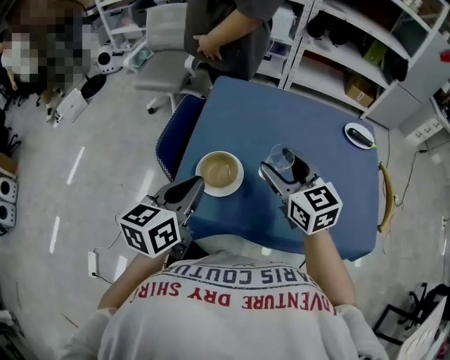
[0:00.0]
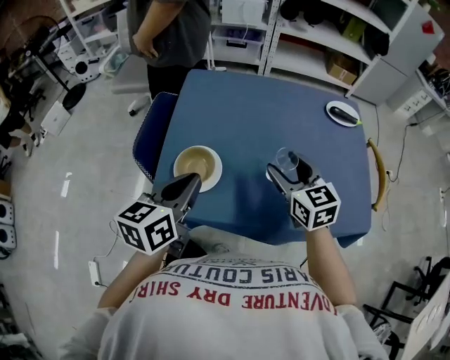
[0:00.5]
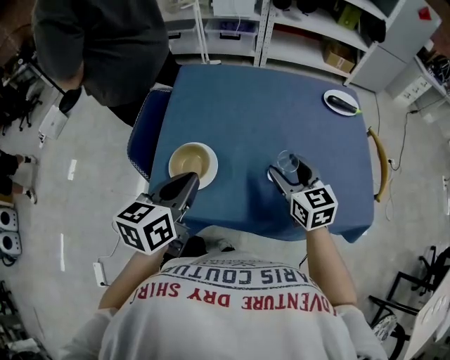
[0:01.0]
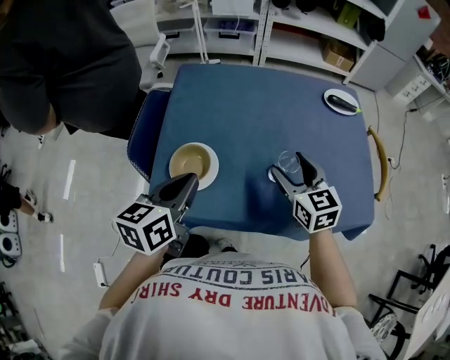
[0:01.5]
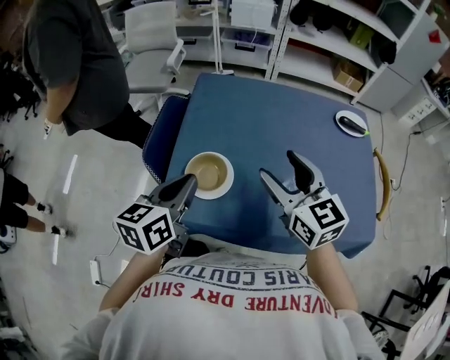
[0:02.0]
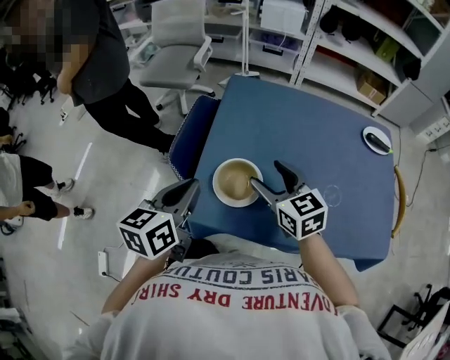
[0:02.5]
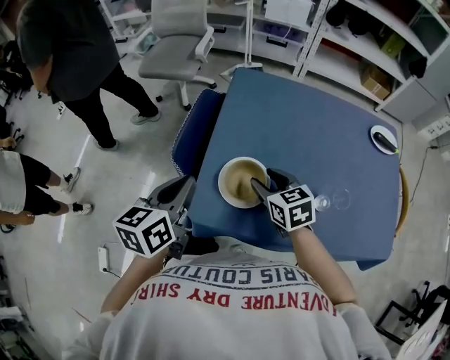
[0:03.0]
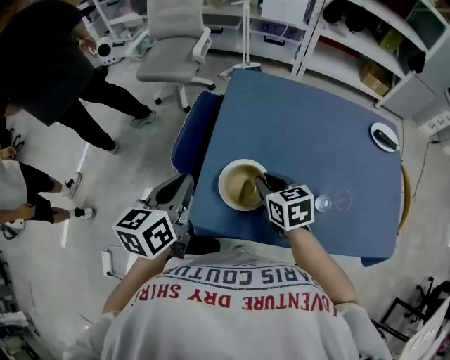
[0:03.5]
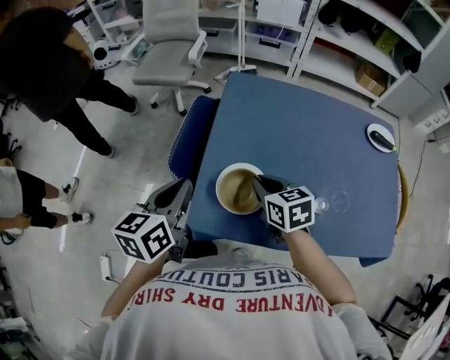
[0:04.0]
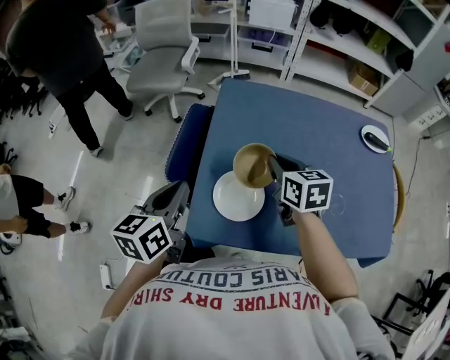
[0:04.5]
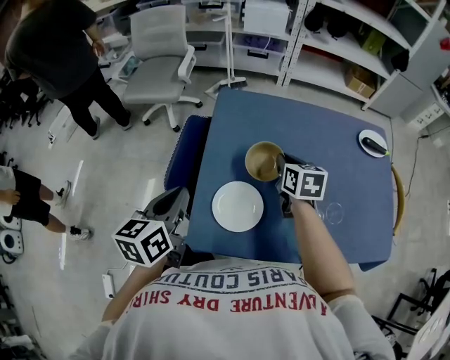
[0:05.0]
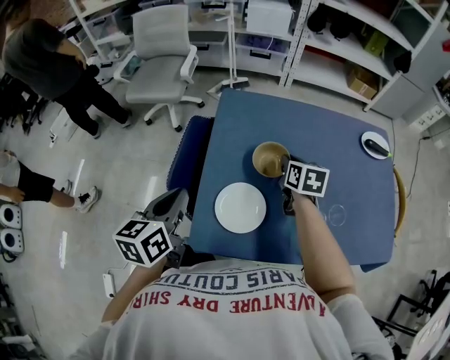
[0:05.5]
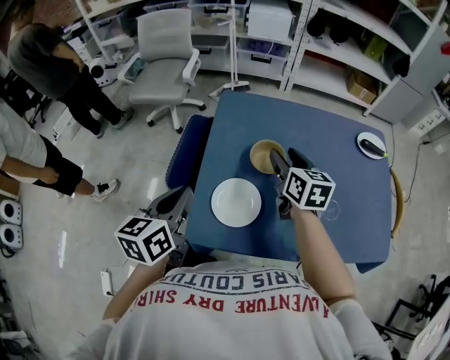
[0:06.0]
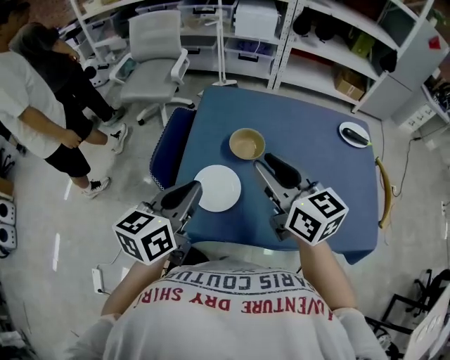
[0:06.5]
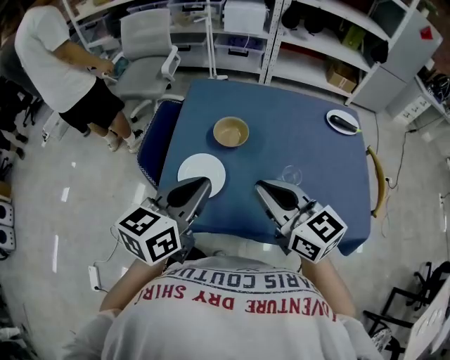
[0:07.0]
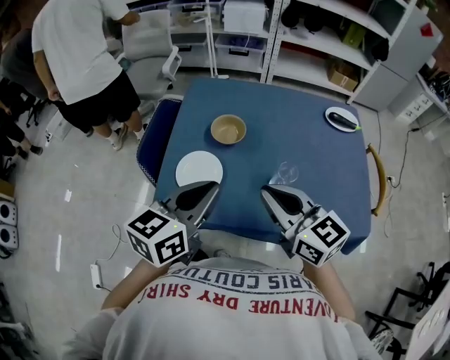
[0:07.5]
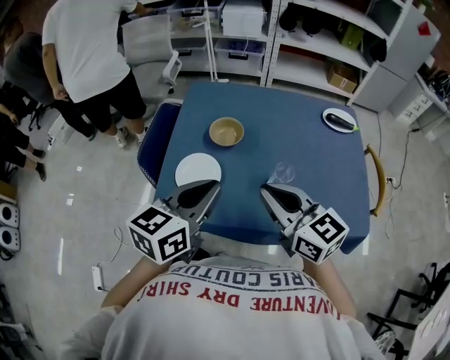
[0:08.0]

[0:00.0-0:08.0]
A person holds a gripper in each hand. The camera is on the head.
0:00.0 to 0:02.0: The right gripper goes to the right and returns, some 15 cm each way.
0:02.0 to 0:04.0: The right gripper goes roughly 20 cm downward, to the left and forward, rotates some 30 degrees, and closes; the left gripper is displaced to the left and forward by approximately 10 cm.
0:04.0 to 0:06.0: The right gripper shifts roughly 15 cm forward, to the right and upward, rotates approximately 30 degrees, and opens.
0:06.0 to 0:08.0: The left gripper moves to the right and backward, approximately 20 cm; the right gripper travels backward by some 25 cm, rotates about 30 degrees, and closes its fingers.

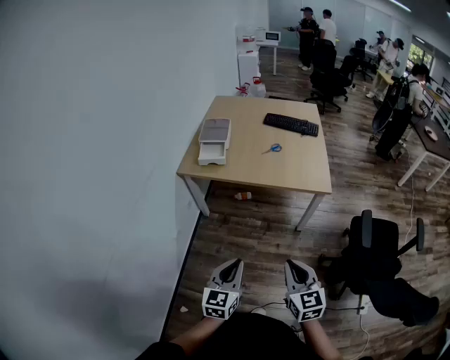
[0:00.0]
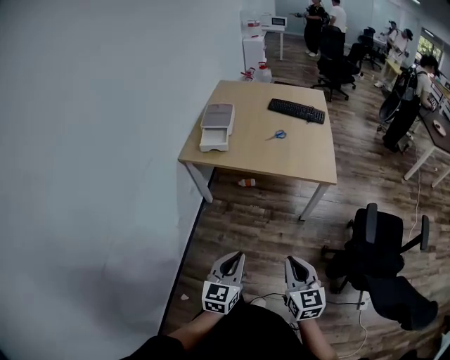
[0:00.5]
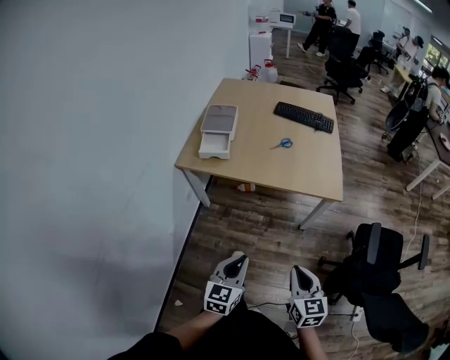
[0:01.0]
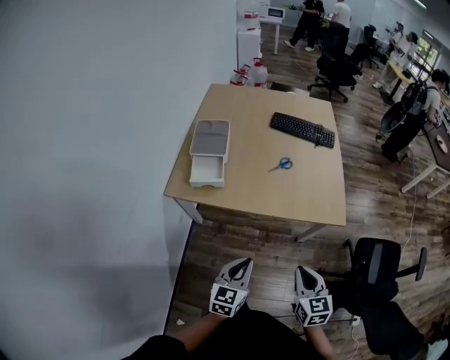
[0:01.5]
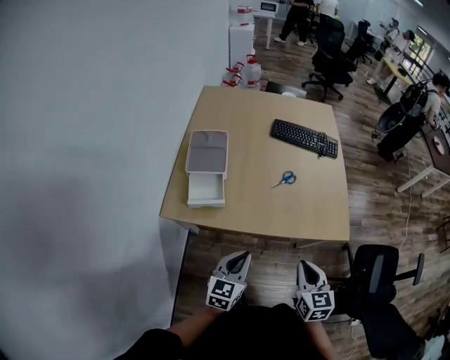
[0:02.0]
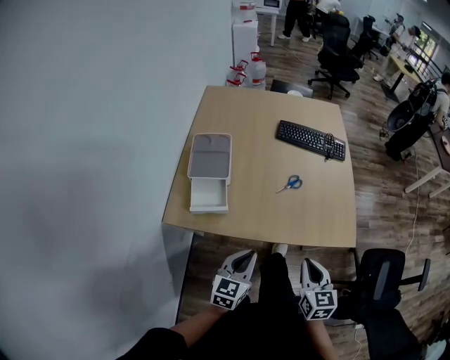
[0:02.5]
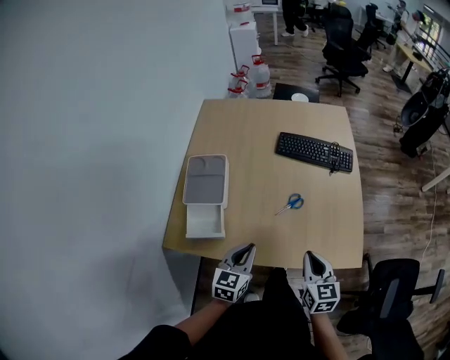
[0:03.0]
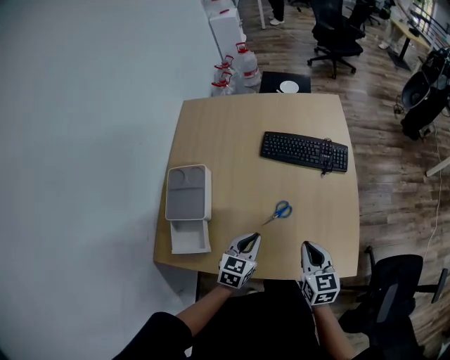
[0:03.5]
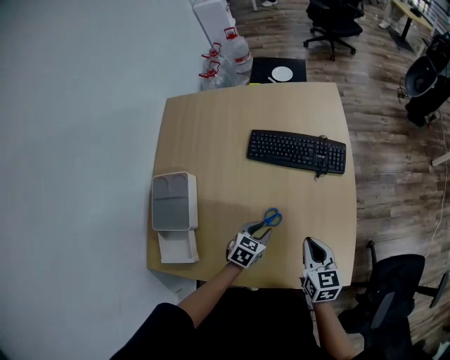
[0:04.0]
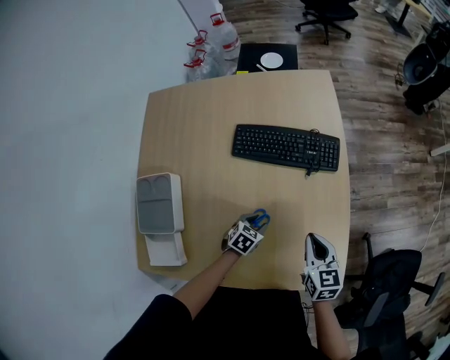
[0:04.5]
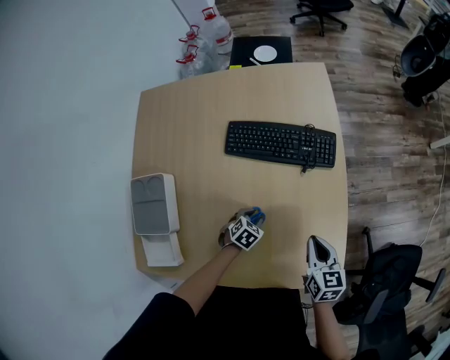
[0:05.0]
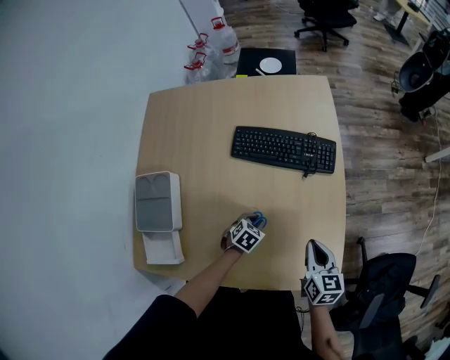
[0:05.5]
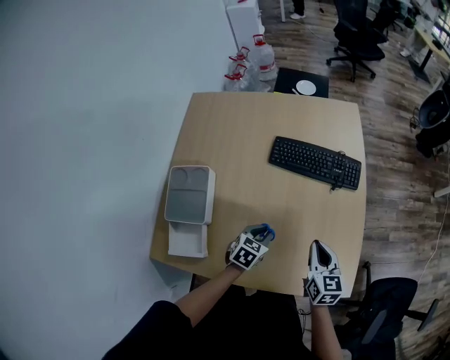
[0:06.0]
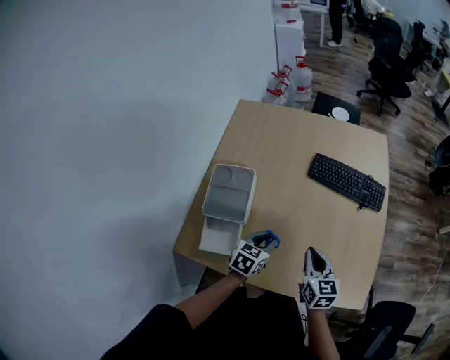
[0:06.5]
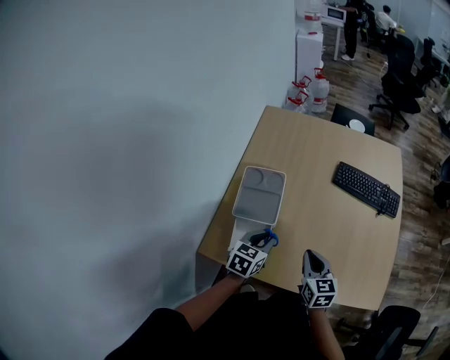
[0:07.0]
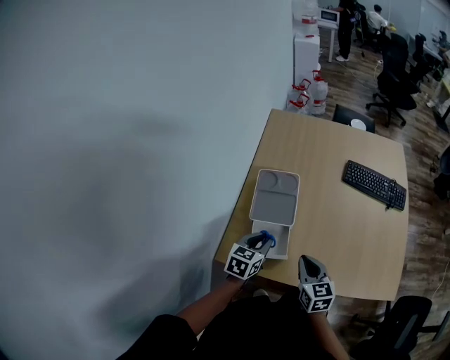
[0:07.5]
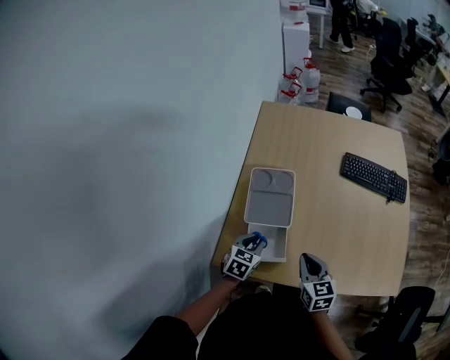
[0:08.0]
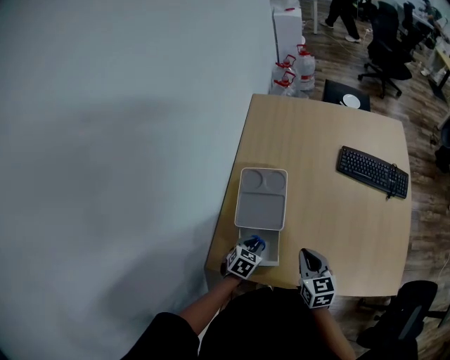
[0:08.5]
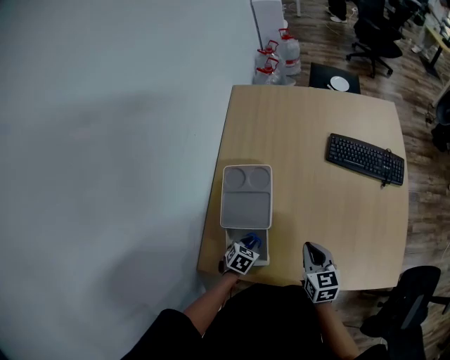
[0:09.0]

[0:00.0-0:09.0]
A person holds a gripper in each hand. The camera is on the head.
0:00.0 to 0:02.0: Both grippers move forward, some 40 cm.
0:02.0 to 0:04.5: The pair of grippers is taken forward, about 40 cm. The left gripper heads downward, covering some 25 cm, points its fingers roughly 40 degrees further downward, and opens up.
0:04.5 to 0:07.0: The left gripper travels to the left, upward and backward by roughly 40 cm, and turns by roughly 40 degrees. The right gripper shifts about 35 cm to the left and backward.
0:07.0 to 0:09.0: The left gripper travels downward by roughly 20 cm, and swivels roughly 30 degrees; the right gripper shifts roughly 5 cm downward.

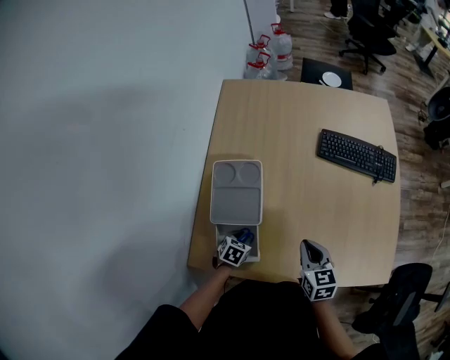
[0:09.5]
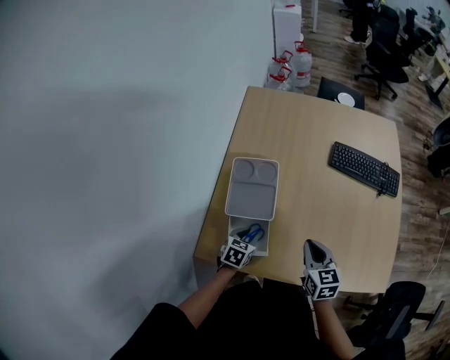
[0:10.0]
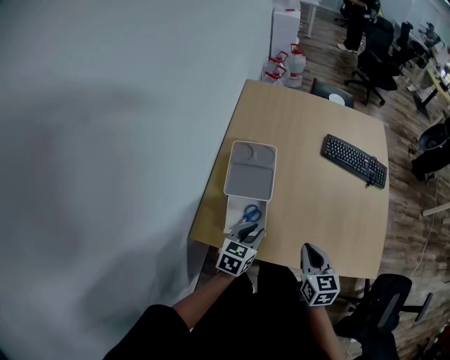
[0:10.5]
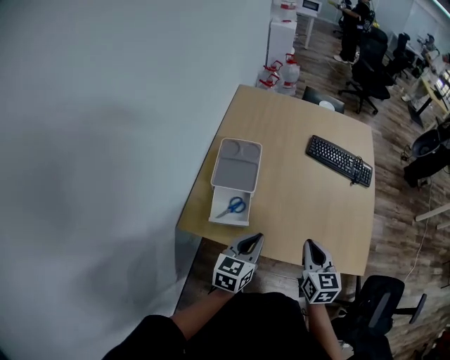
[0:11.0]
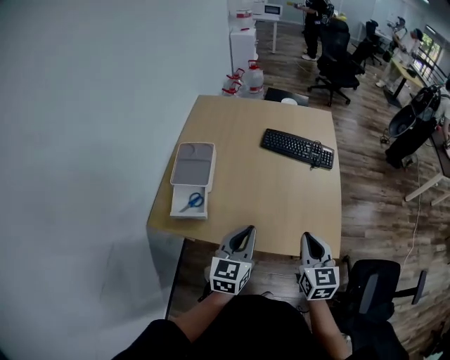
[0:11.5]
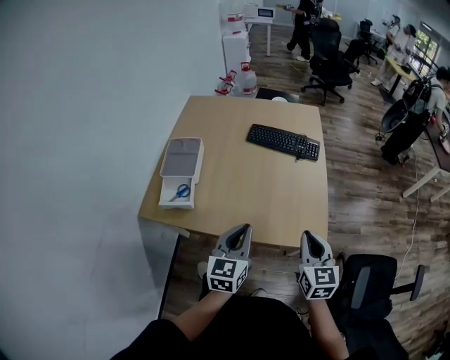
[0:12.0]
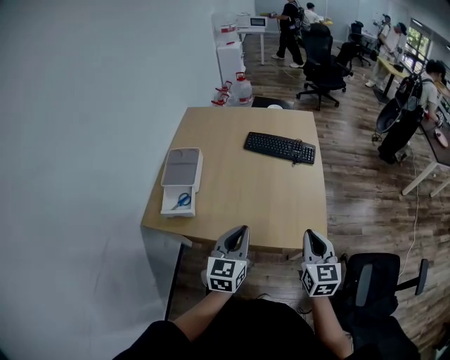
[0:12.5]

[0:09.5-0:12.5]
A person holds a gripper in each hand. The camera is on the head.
0:09.5 to 0:11.0: The left gripper is displaced upward and backward by roughly 30 cm, and tilts its fingers about 40 degrees upward. Meanwhile the right gripper shifts approximately 20 cm backward, upward and to the right.
0:11.0 to 0:12.5: Both grippers move to the right, approximately 25 cm.

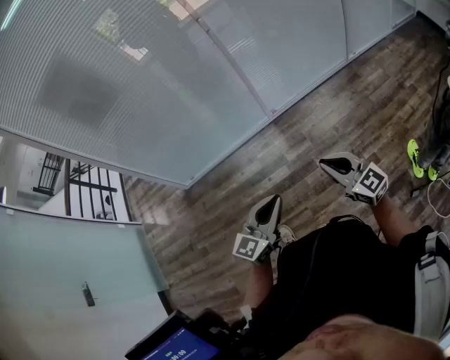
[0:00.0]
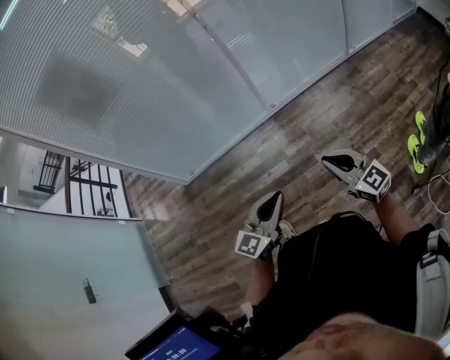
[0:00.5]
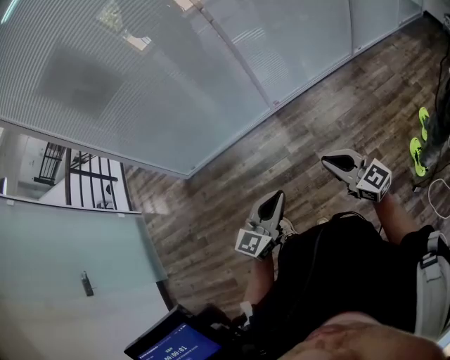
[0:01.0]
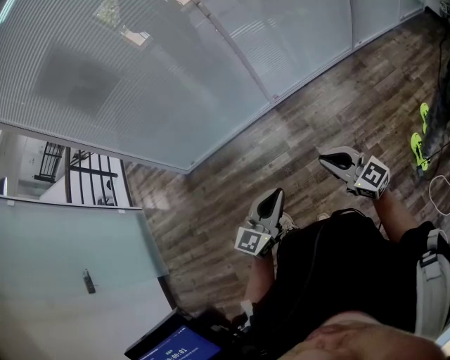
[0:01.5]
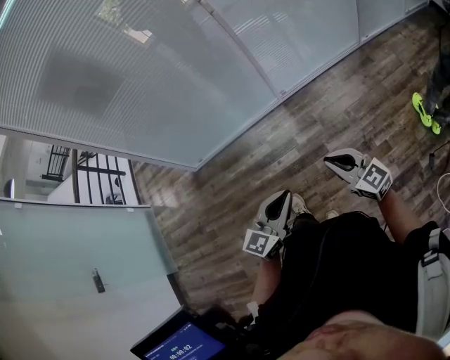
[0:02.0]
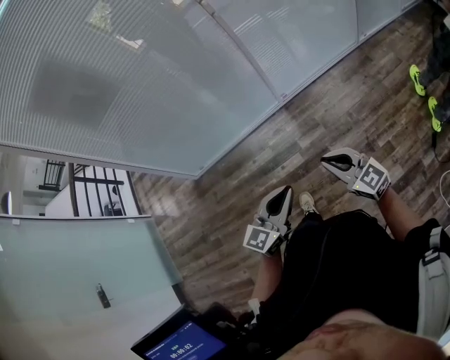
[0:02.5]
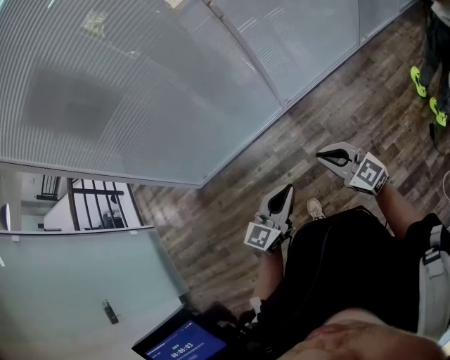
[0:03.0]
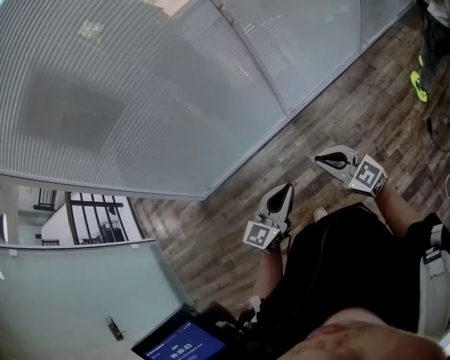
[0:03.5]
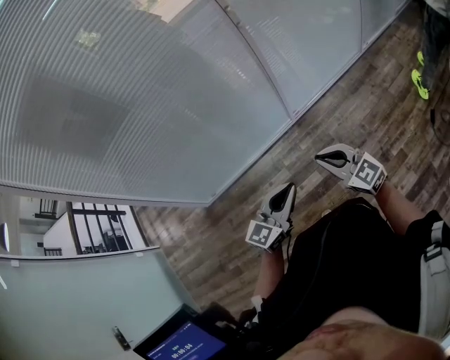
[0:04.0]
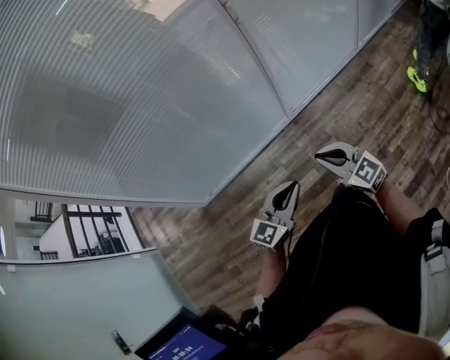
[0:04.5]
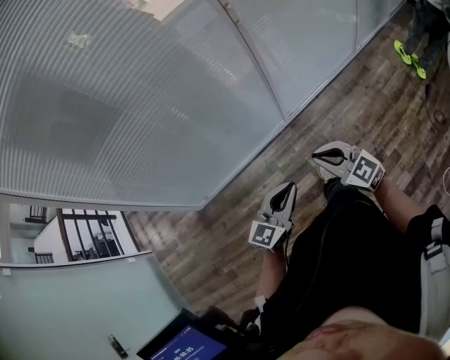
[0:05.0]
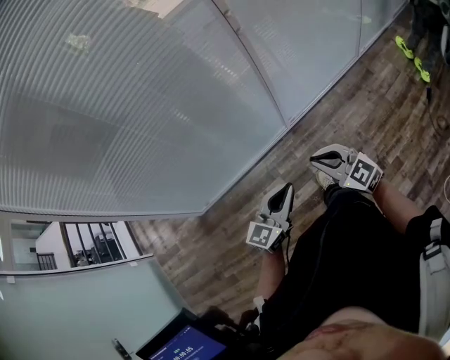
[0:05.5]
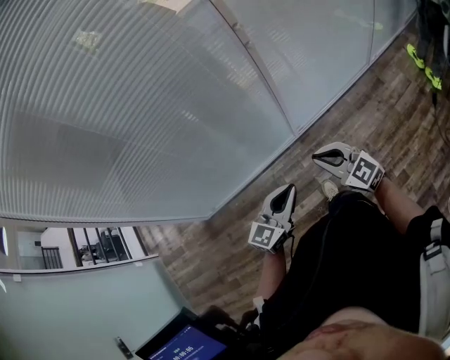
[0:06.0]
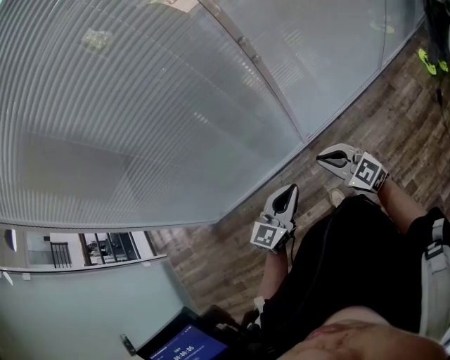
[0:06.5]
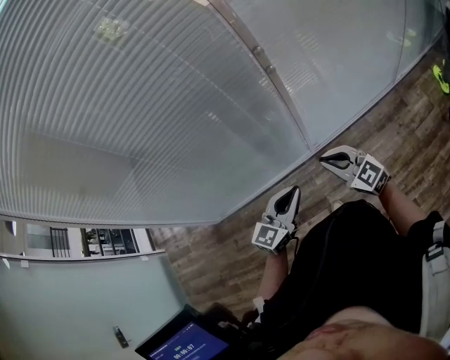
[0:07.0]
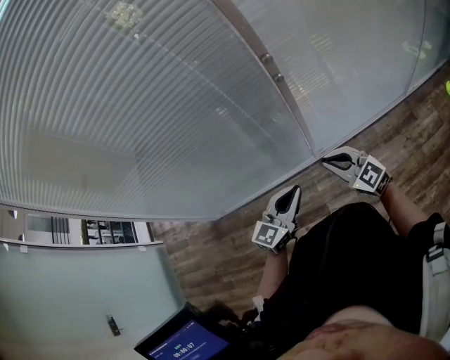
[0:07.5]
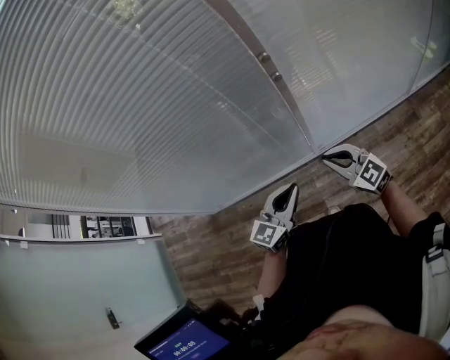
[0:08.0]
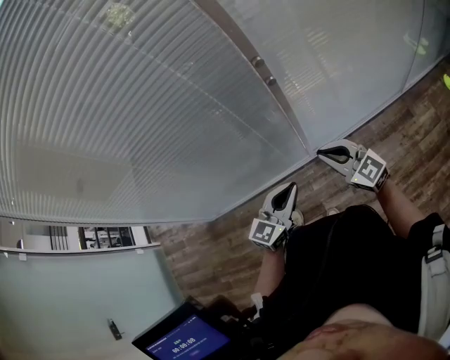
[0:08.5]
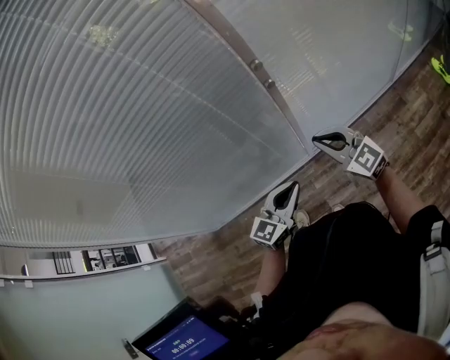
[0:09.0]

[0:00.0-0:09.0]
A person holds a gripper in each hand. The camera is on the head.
0:00.0 to 0:02.0: There are only small adjustments of the grippers.
0:02.0 to 0:04.5: Both grippers travel together forward and to the left, about 30 cm.
0:04.5 to 0:07.0: The two grippers go approximately 30 cm forward.
0:07.0 to 0:09.0: The grippers both shift forward by approximately 10 cm.
